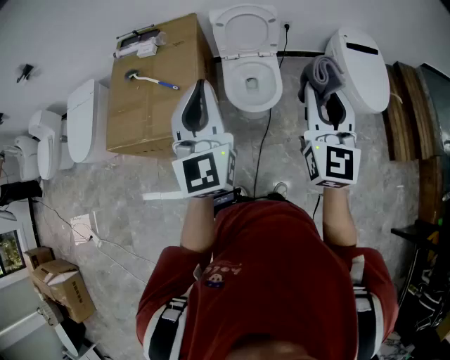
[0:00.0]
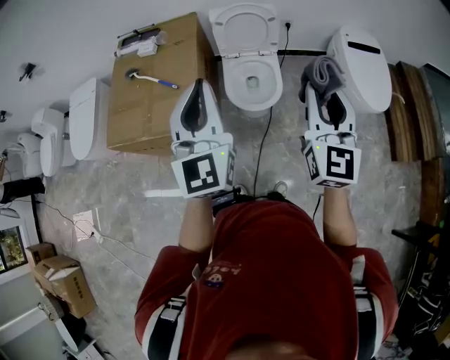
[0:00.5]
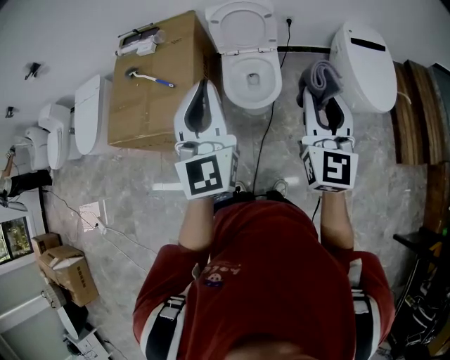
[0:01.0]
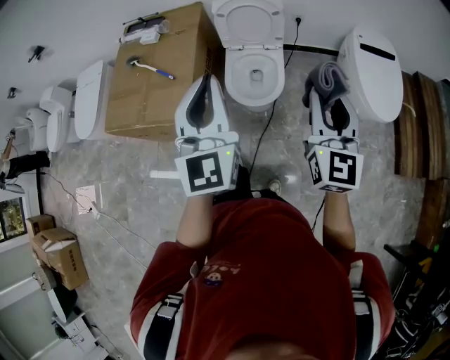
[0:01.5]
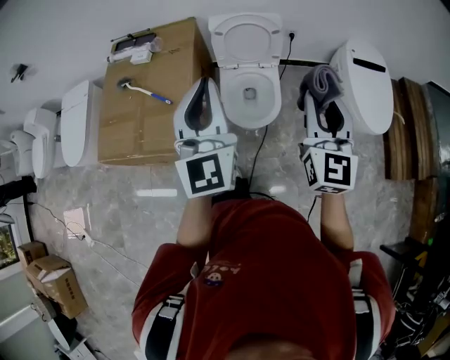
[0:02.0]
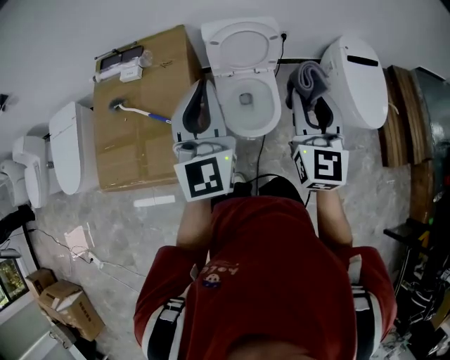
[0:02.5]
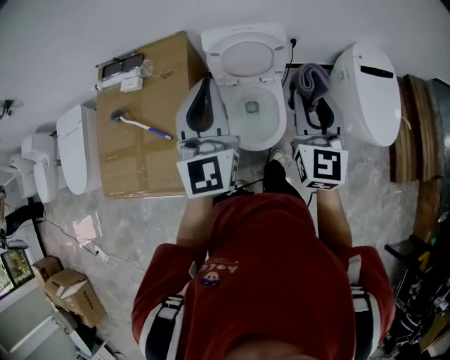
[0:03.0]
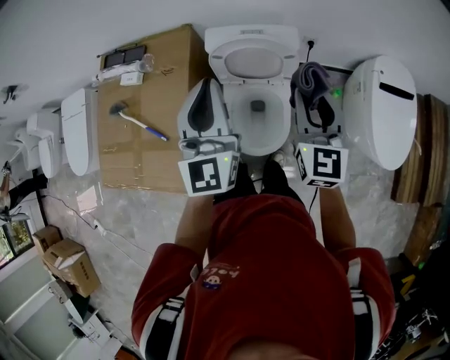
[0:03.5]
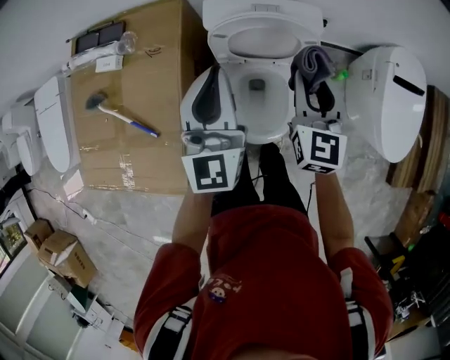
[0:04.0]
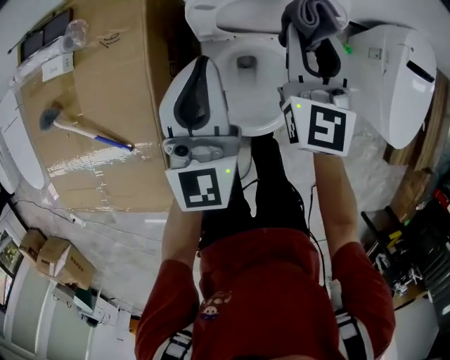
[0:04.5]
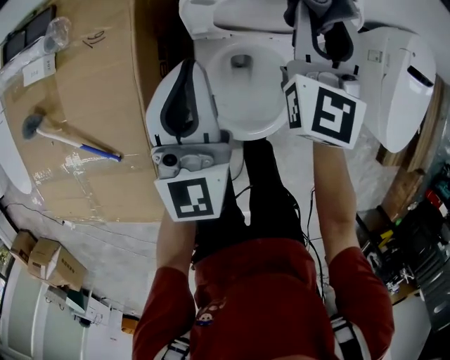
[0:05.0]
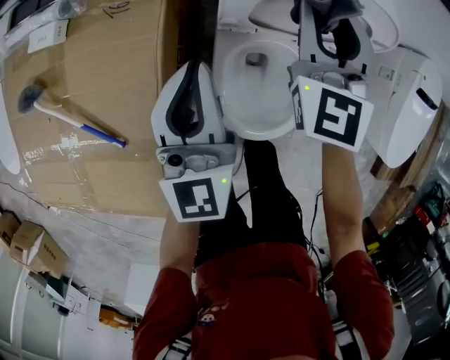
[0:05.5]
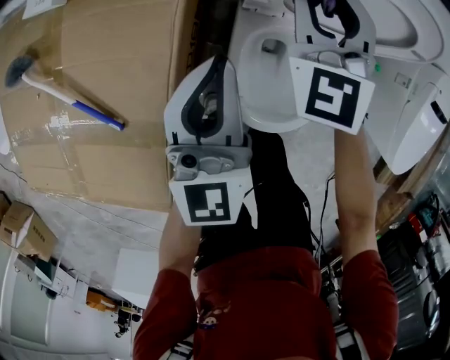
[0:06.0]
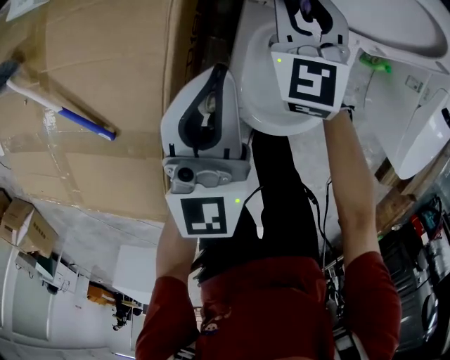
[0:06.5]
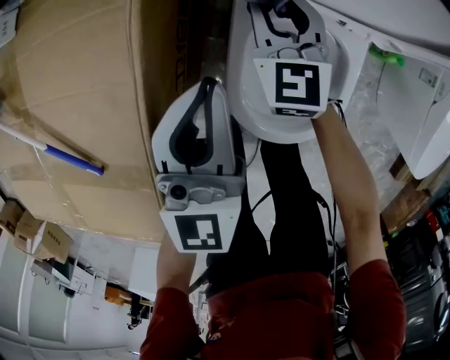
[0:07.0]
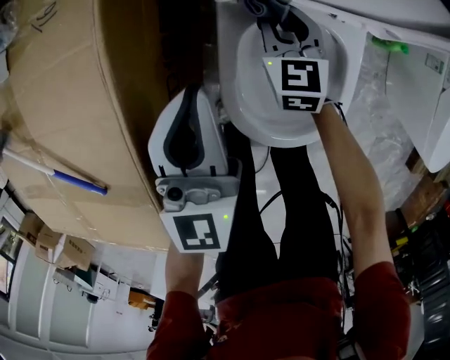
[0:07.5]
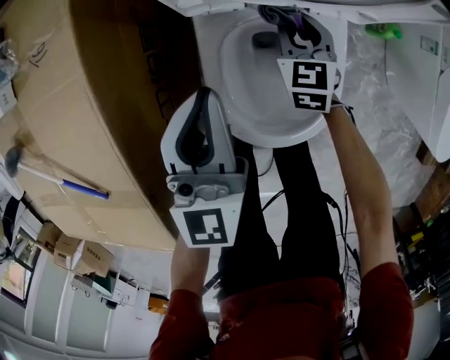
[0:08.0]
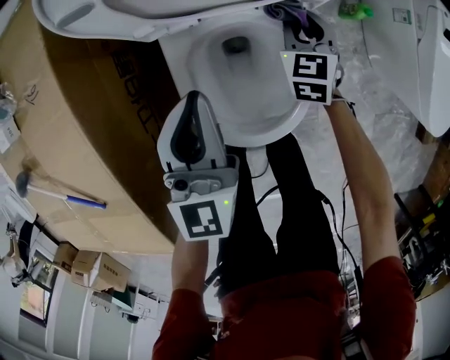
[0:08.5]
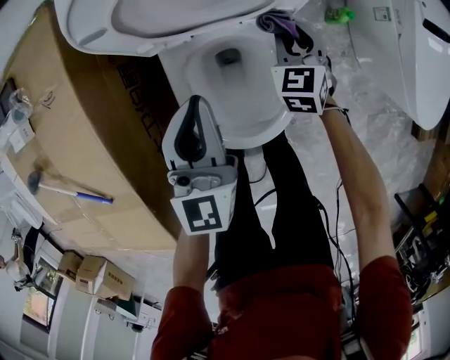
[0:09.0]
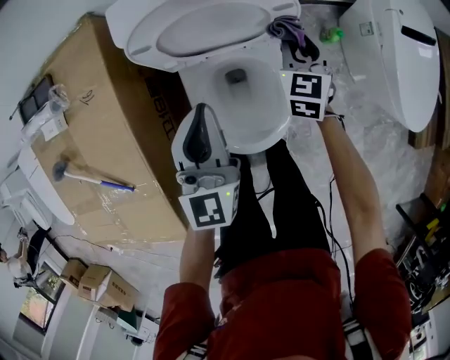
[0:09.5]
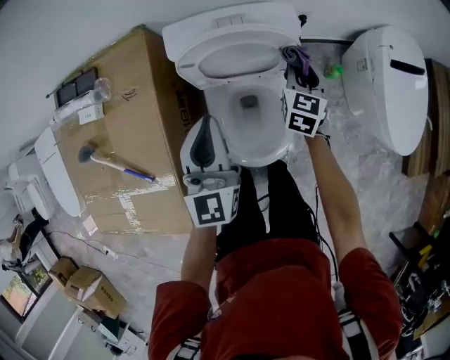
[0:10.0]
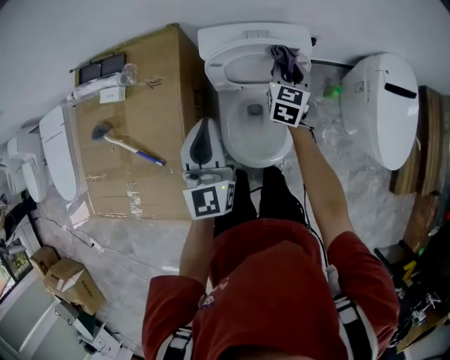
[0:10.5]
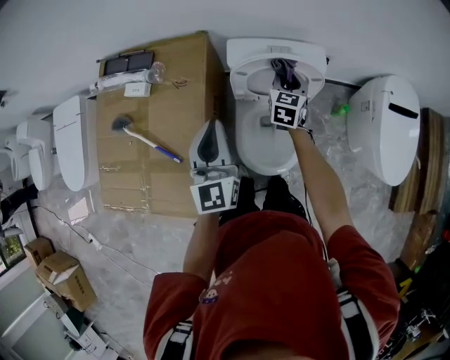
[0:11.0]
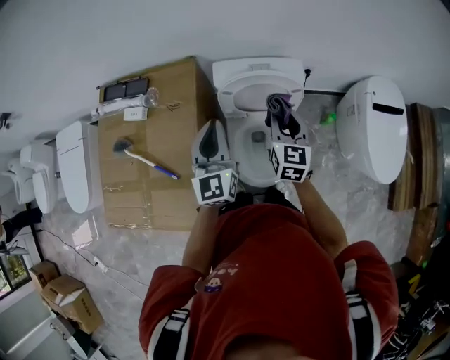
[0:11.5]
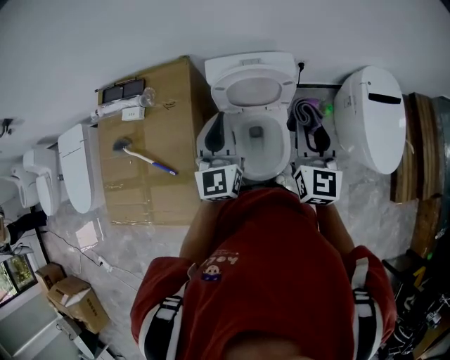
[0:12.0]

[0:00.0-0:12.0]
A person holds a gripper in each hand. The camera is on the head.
0:00.0 to 0:02.0: The grippers both shift forward by some 10 cm.
0:02.0 to 0:04.0: The grippers both shift forward and downward by approximately 40 cm.
0:04.0 to 0:06.0: The left gripper goes approximately 25 cm downward and to the left, while the right gripper is displaced to the left, downward and forward by some 30 cm, and changes its angle by roughly 30 degrees.
0:06.0 to 0:08.0: The left gripper shifts roughly 15 cm downward and to the right; the right gripper goes about 30 cm downward and to the right, and changes its angle by approximately 30 degrees.
0:08.0 to 0:10.0: The left gripper heads upward, covering some 25 cm. Meanwhile the right gripper moves upward and to the right, about 30 cm, and changes its angle by roughly 30 degrees.
0:10.0 to 0:12.0: The right gripper goes some 35 cm upward and backward, and rotates approximately 30 degrees. Meanwhile the left gripper goes about 15 cm upward.

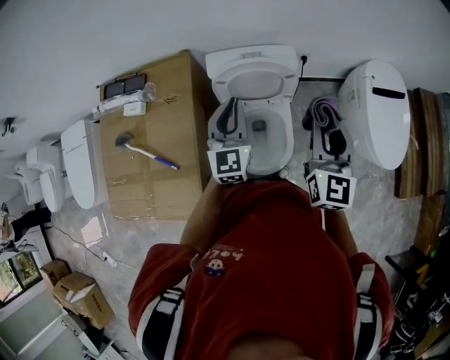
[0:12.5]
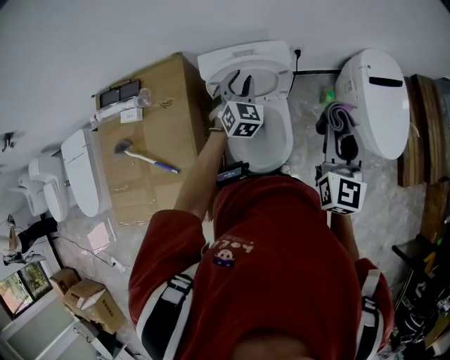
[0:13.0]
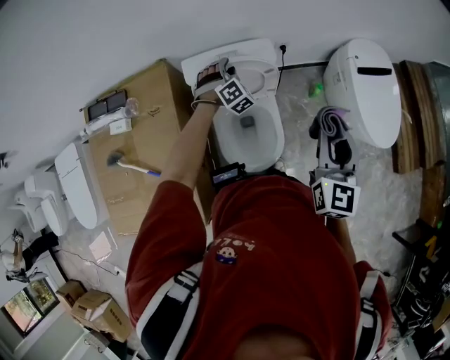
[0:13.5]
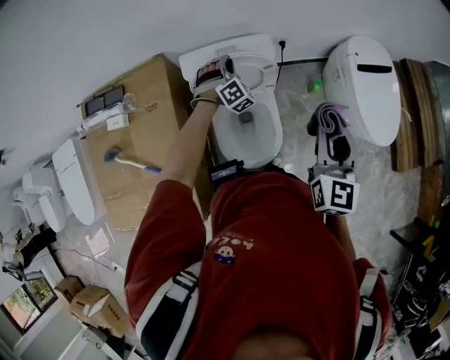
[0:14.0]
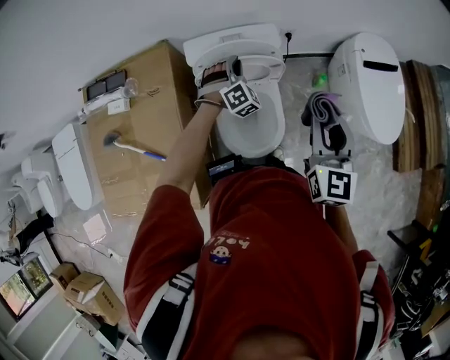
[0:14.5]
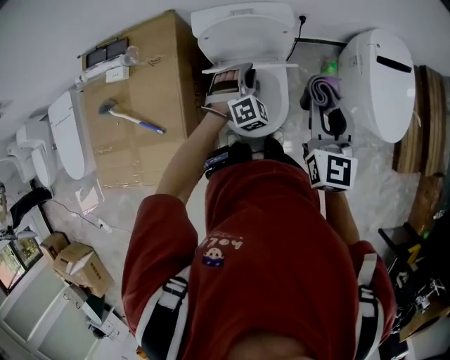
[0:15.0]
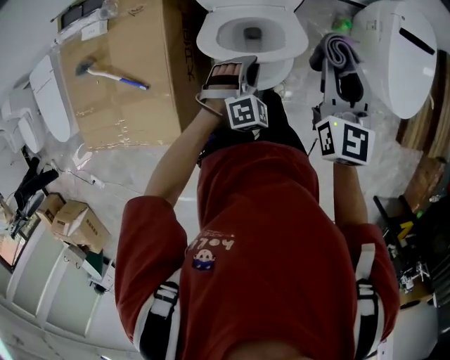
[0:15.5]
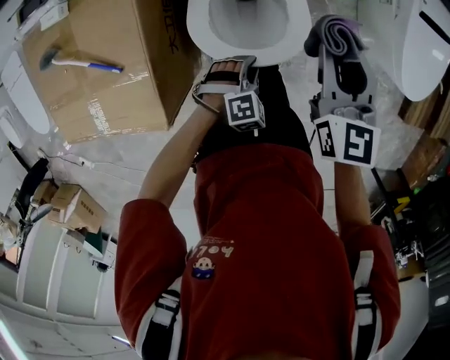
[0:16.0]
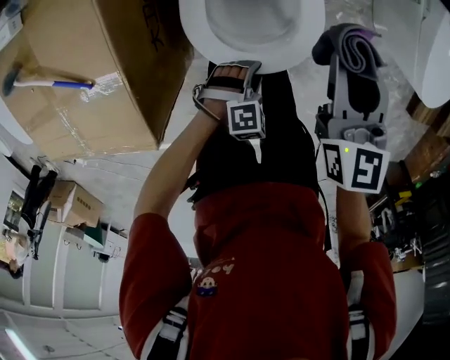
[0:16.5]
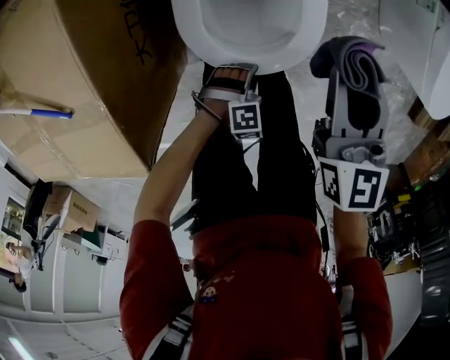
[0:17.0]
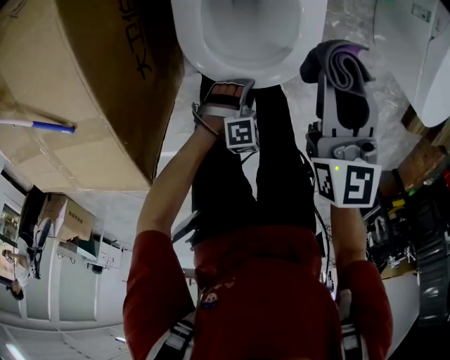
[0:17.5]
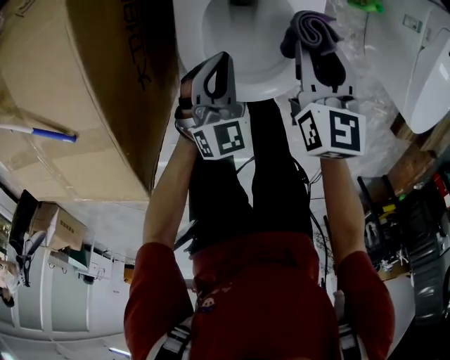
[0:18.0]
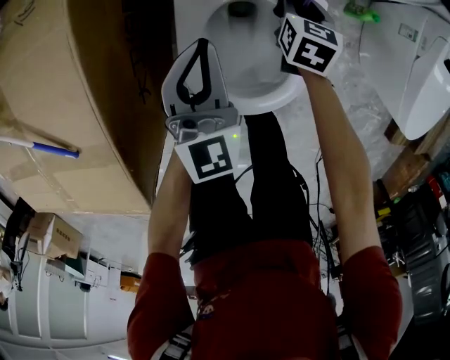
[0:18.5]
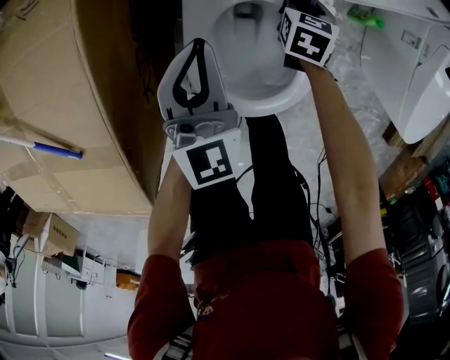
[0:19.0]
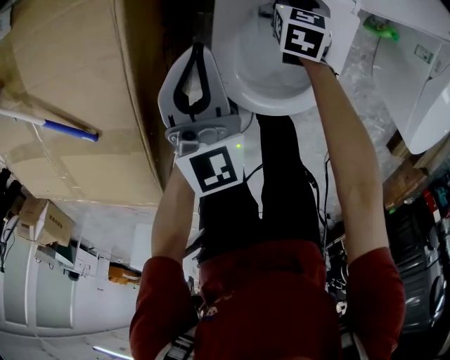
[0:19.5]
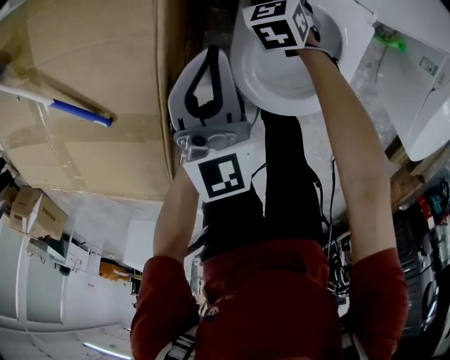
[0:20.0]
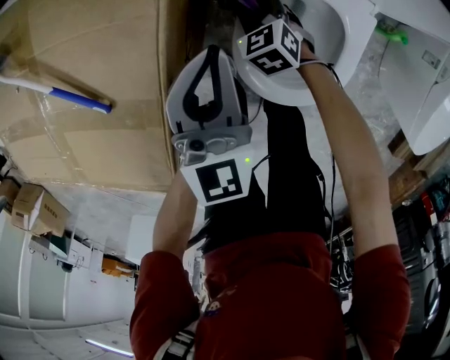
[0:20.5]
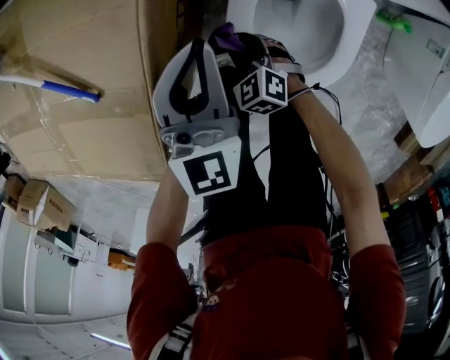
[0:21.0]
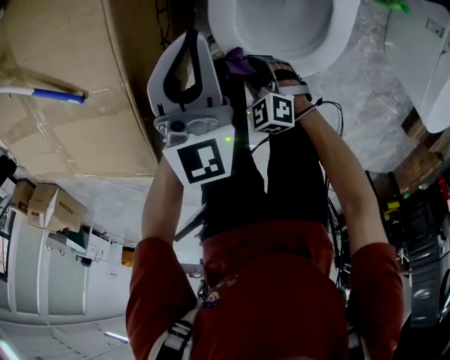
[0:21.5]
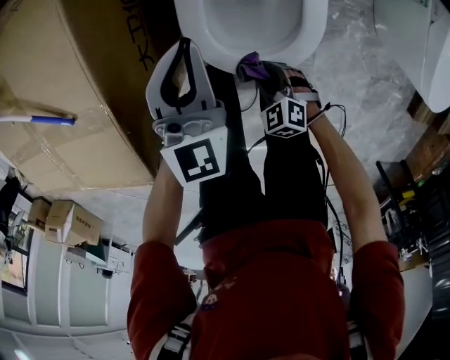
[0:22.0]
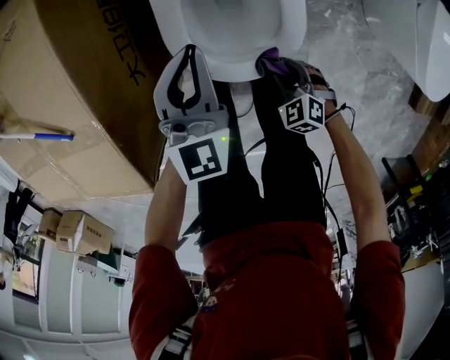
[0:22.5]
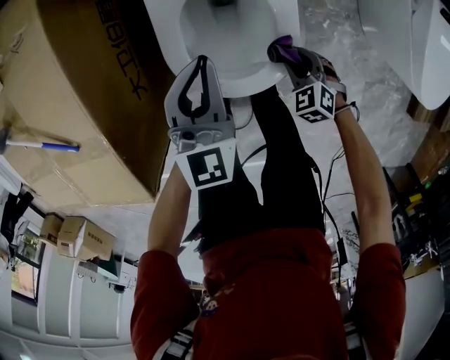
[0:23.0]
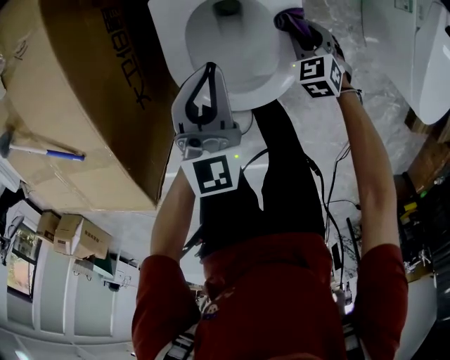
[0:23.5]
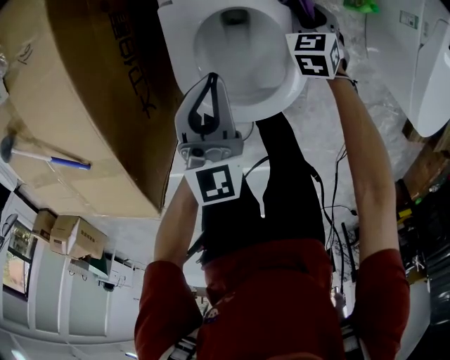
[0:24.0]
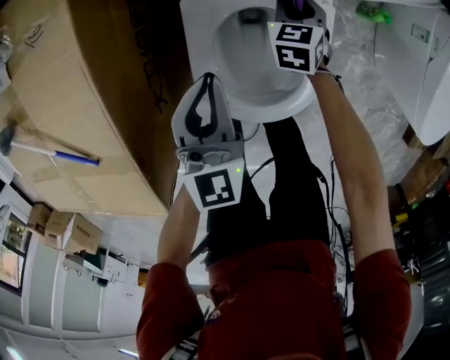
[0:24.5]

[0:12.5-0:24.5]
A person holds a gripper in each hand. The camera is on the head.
0:12.5 to 0:14.5: The left gripper moves downward, forward and to the right, approximately 20 cm, twists some 60 degrees clockwise, seen from behind, and opens, then closes once more.
0:14.5 to 0:16.5: The right gripper travels downward by roughly 25 cm, and changes its angle by about 20 degrees. Meanwhile the left gripper heads backward and downward, covering about 50 cm, tips its fingers downward by approximately 30 degrees, and opens its fingers.
0:16.5 to 0:18.5: The left gripper moves some 30 cm, tips its fingers upward by approximately 50 degrees, and closes. The right gripper goes roughly 30 cm downward, and changes its angle by about 20 degrees.
0:18.5 to 0:20.5: The left gripper changes place by approximately 15 cm, while the right gripper changes place by about 25 cm, and twists roughly 50 degrees counterclockwise, seen from behind.
0:20.5 to 0:22.5: The right gripper travels backward and to the right by about 35 cm; the left gripper goes some 15 cm to the right and backward.
0:22.5 to 0:24.5: The left gripper heads forward, covering approximately 5 cm; the right gripper is displaced forward by roughly 35 cm, and rotates some 40 degrees.

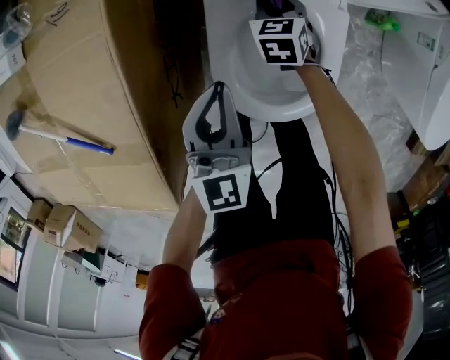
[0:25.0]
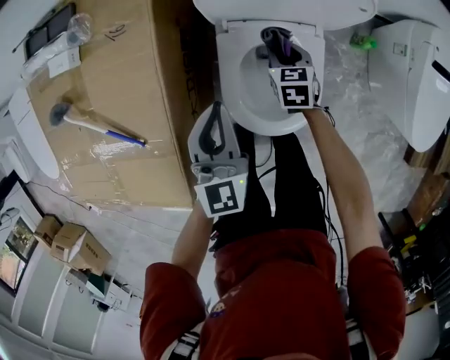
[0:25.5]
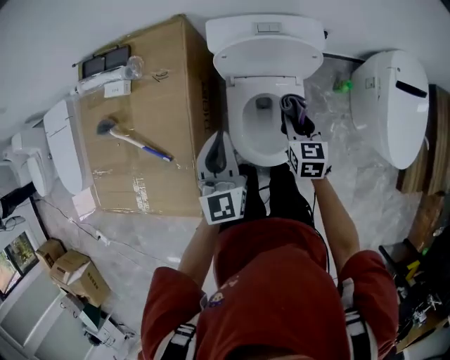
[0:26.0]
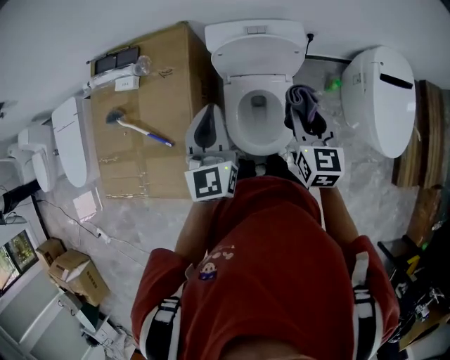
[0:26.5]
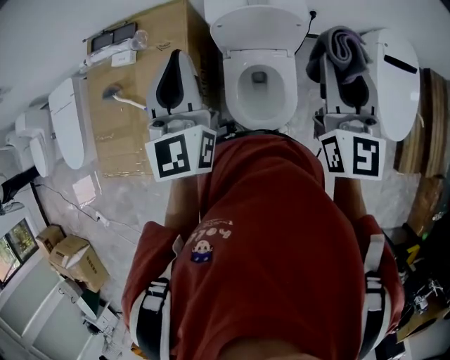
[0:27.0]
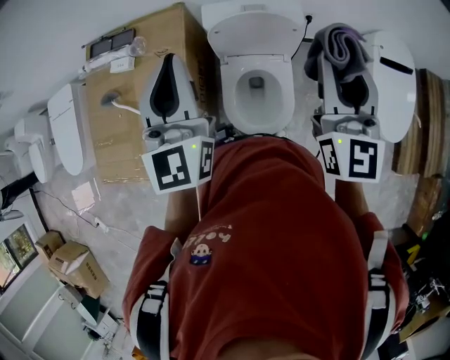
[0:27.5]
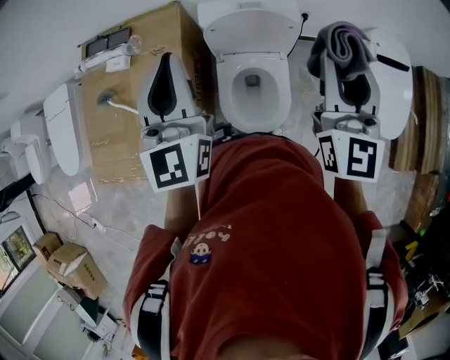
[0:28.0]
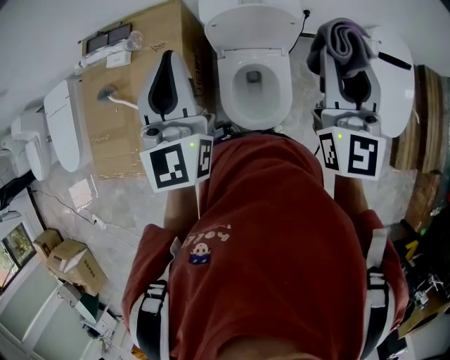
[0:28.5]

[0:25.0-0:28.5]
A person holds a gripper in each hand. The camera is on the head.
0:25.0 to 0:27.0: The grippers both shift upward by roughly 60 cm. The right gripper angles its fingers upward, by roughly 50 degrees. Meanwhile the left gripper turns by roughly 20 degrees.
0:27.0 to 0:28.5: There are only small adjustments of the grippers.
